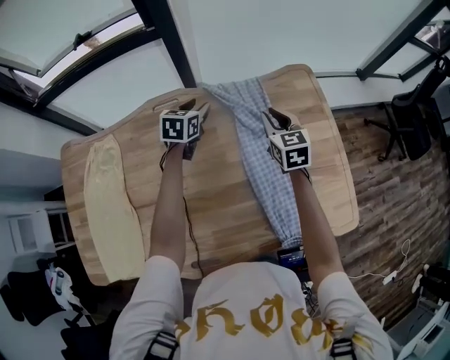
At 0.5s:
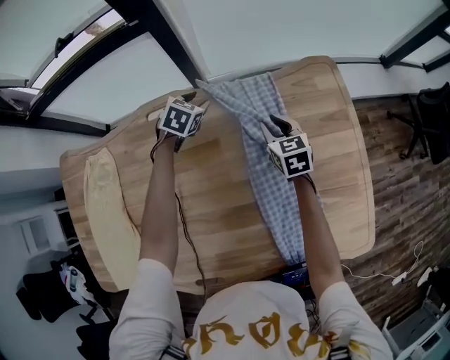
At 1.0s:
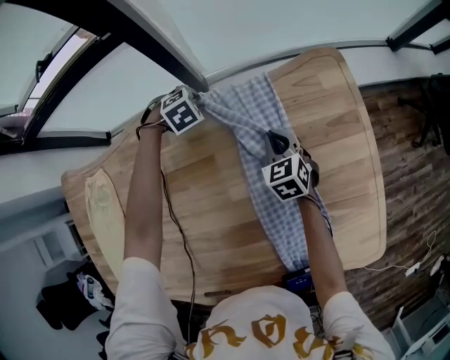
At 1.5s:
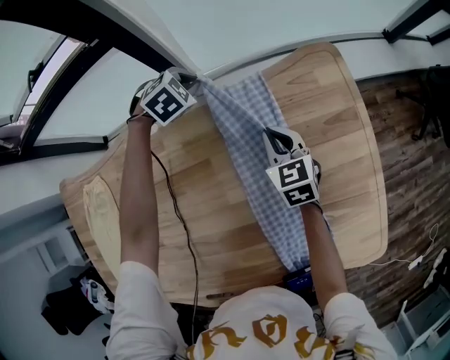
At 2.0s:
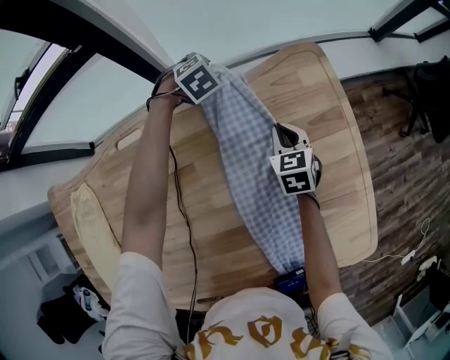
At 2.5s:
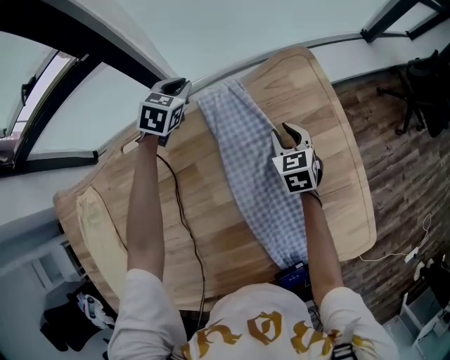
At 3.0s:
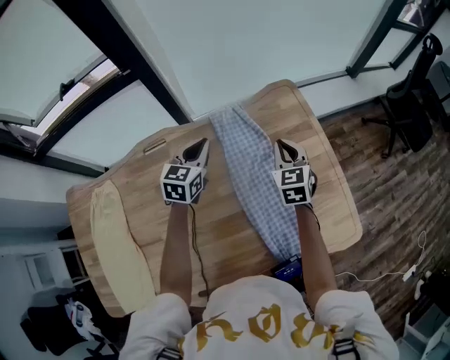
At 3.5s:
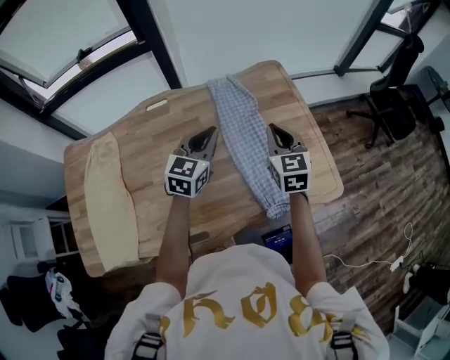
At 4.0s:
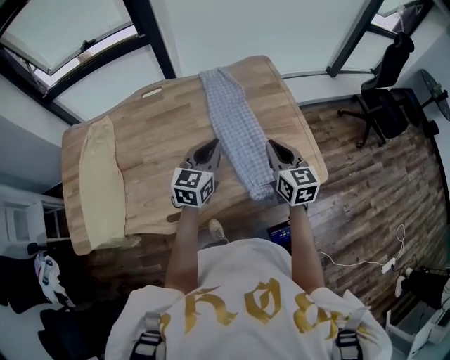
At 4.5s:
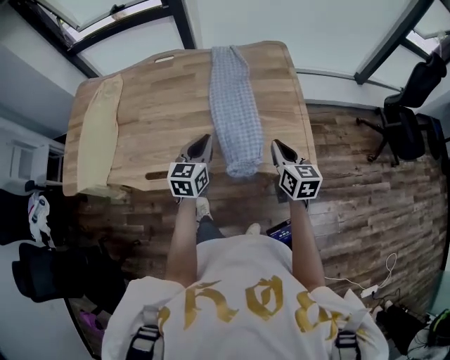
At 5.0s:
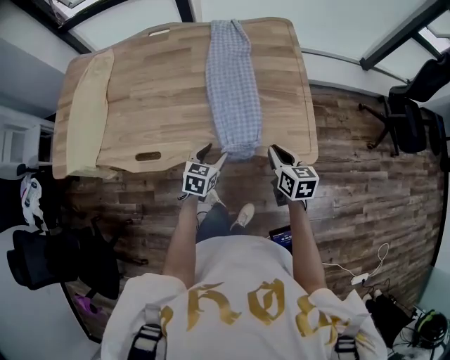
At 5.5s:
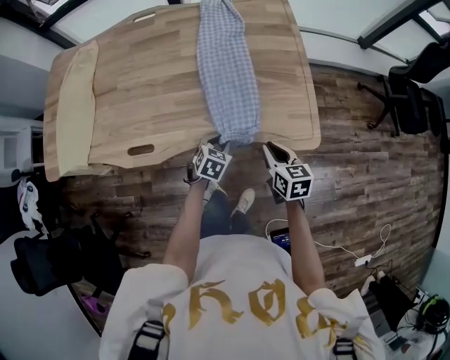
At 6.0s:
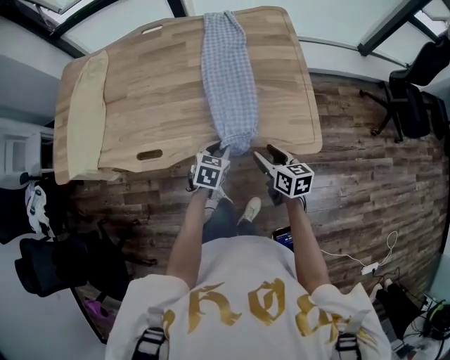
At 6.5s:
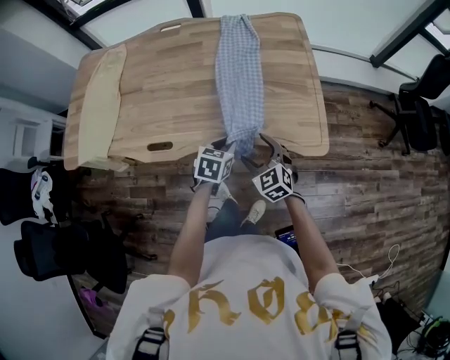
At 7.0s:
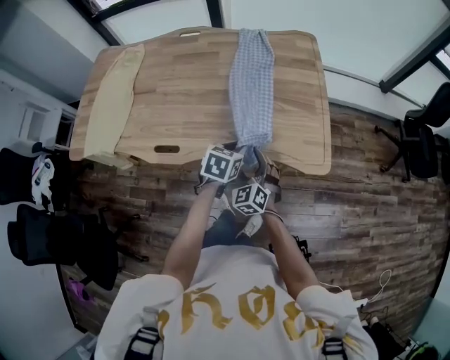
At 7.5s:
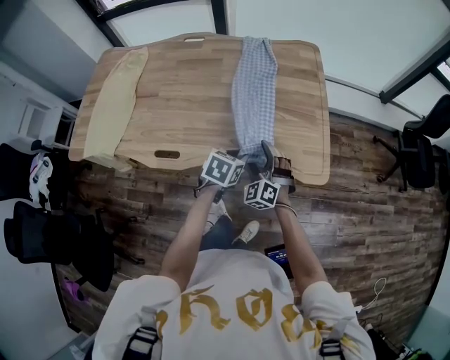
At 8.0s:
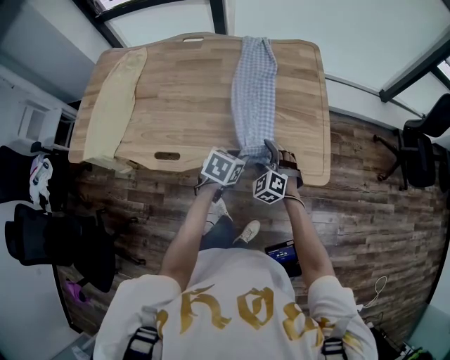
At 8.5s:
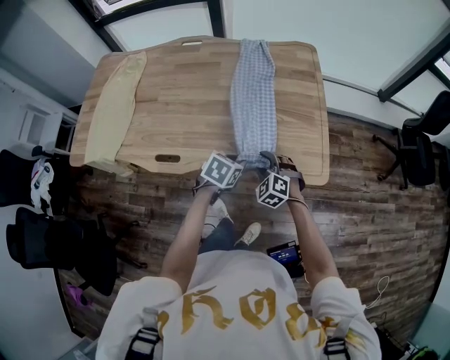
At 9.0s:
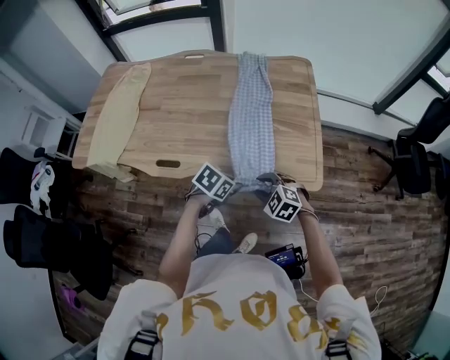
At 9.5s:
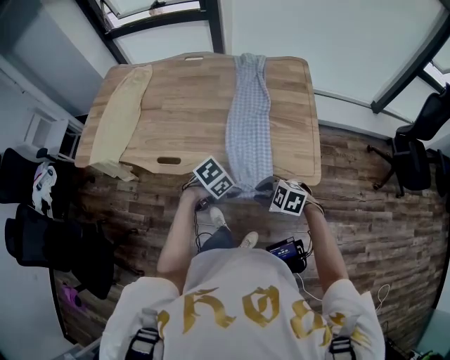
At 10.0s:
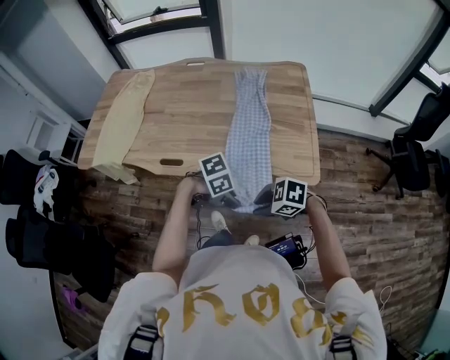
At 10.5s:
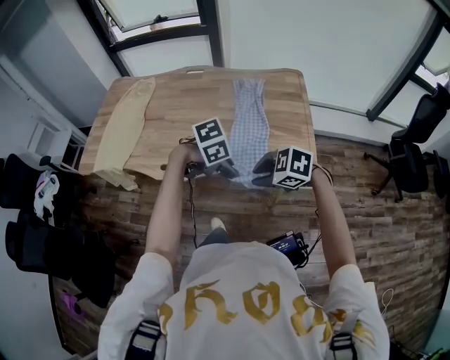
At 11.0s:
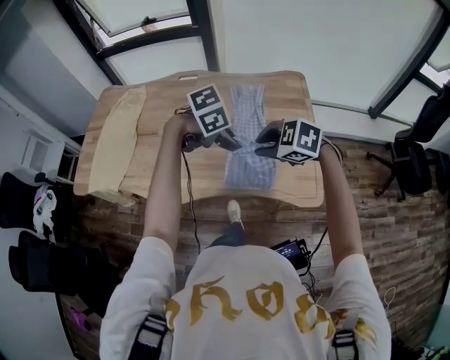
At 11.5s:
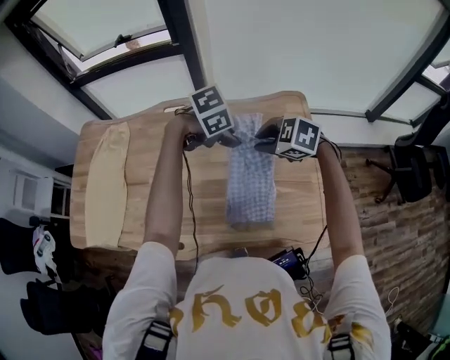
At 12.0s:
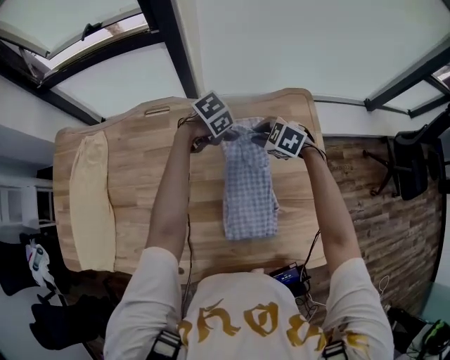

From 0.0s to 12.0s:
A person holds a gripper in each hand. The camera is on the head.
From 0.0s to 2.0s: The left gripper moves up and down over about 20 cm, changing direction 2 times, twists approximately 50 degrees clockwise, seen from behind, and closes, then reopens. The right gripper moves up and down over approximately 20 cm, changing direction 2 times.
From 2.0s to 4.0s: The pair of grippers is taken backward, about 50 cm. Both grippers move upward, some 25 cm. The left gripper tips its fingers upward by approximately 50 degrees, and closes its fingers. The right gripper swivels some 30 degrees.
From 4.0s to 6.0s: The right gripper moves downward and backward, about 25 cm, changes its angle by some 30 degrees, and opens, while the left gripper shifts some 30 cm downward, backward and to the right, tips its fingers downward by roughly 30 degrees, and opens, then closes once more.
From 6.0s to 8.0s: The left gripper shifts roughly 5 cm upward. The right gripper goes approximately 10 cm to the left and forward, rolls counterclockwise, seen from behind, by approximately 80 degrees, and opens up.
From 8.0s to 10.0s: The left gripper shifts by roughly 20 cm, and turns by some 50 degrees. Meanwhile the right gripper ends up roughly 25 cm from where it was, changes its angle by some 70 degrees, and closes up.
From 10.0s to 12.0s: The two grippers travel together, about 70 cm. The right gripper turns by some 30 degrees.

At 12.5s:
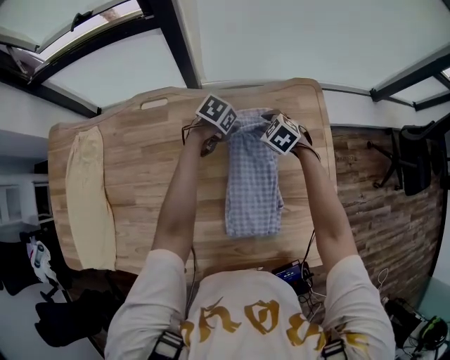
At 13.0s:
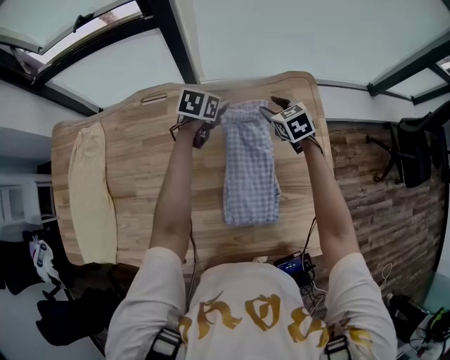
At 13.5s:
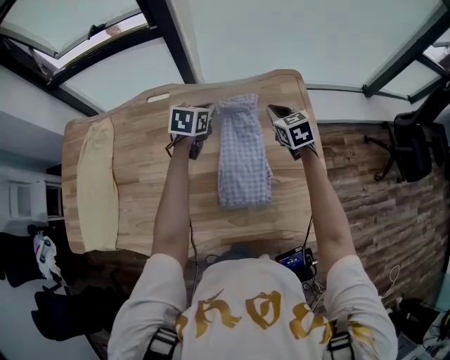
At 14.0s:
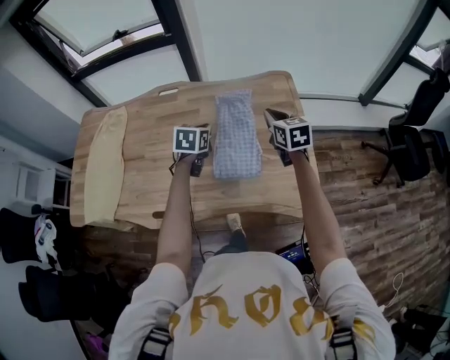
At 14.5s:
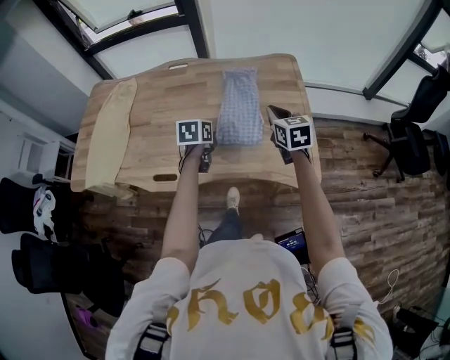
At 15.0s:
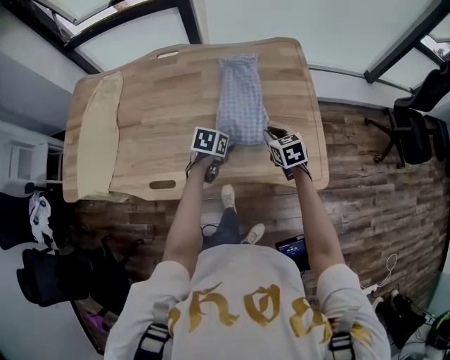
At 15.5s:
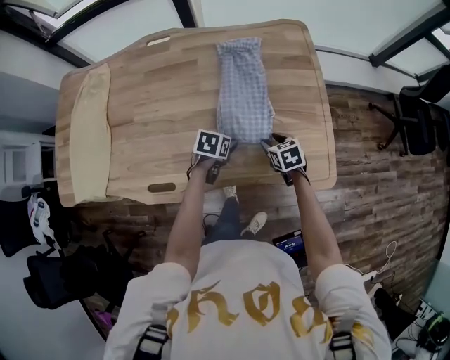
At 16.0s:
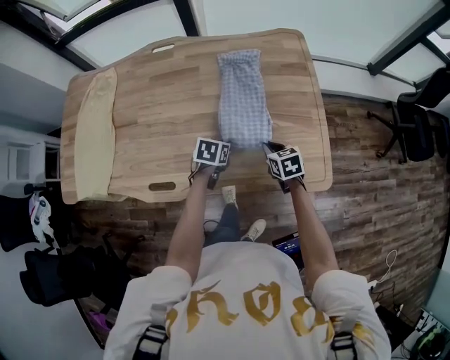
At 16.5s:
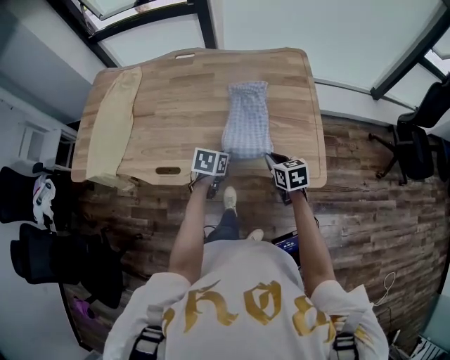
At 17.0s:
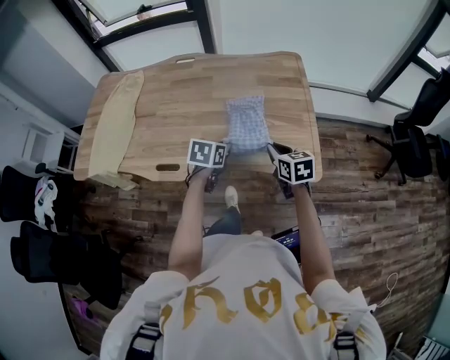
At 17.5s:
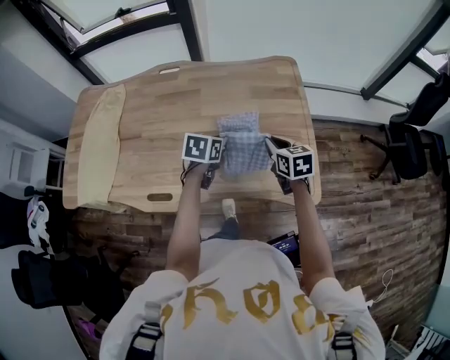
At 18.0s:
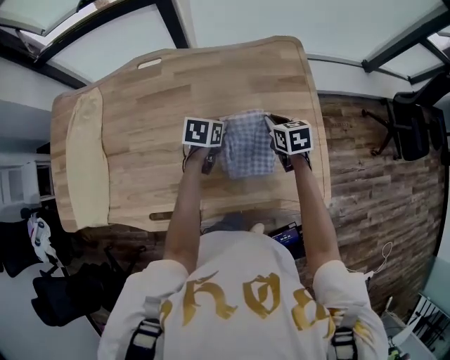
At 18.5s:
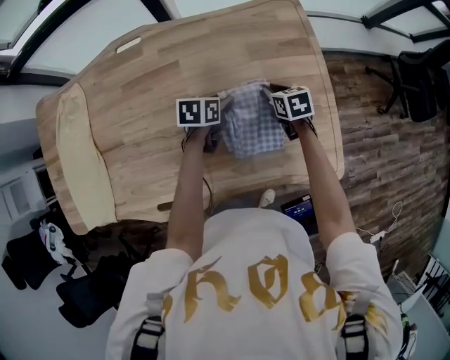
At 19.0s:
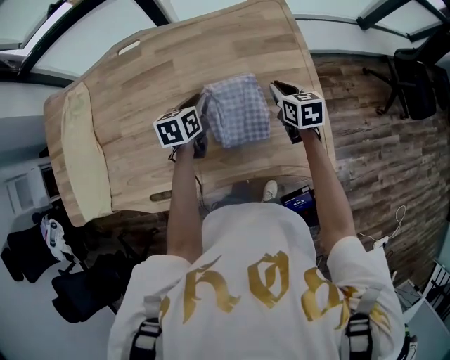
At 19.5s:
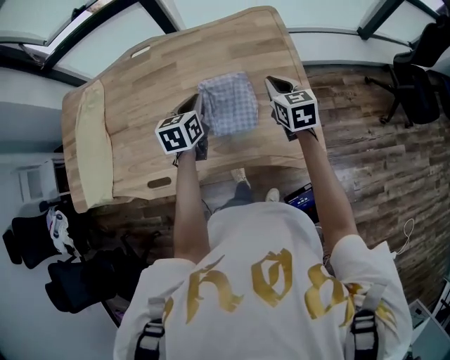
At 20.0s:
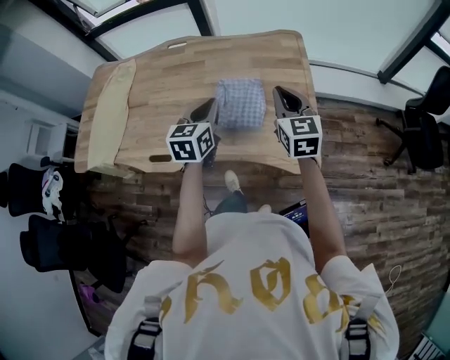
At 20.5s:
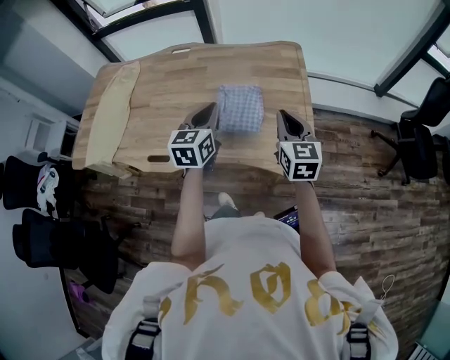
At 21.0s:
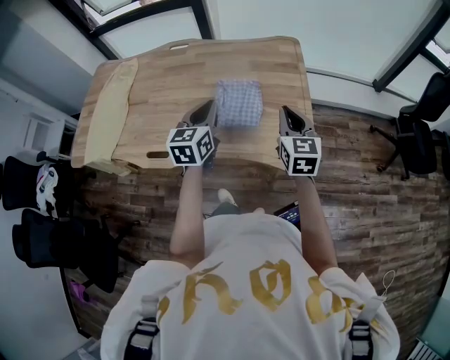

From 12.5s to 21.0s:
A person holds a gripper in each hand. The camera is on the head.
From 12.5s to 14.5s: The left gripper shifts roughly 40 cm backward, and changes its angle by about 40 degrees. The right gripper shifts roughly 40 cm backward and upward, tilts its fingers roughly 30 degrees upward, and closes up.
From 14.5s to 16.5s: The right gripper is displaced downward and backward by some 20 cm, and opens, then closes again. Meanwhile the left gripper travels backward and downward by roughly 15 cm, and opens, then closes again.
From 16.5s to 19.0s: Both grippers move forward, approximately 25 cm.
From 19.0s to 21.0s: Both grippers move backward and upward, roughly 30 cm. The right gripper turns by roughly 30 degrees. The left gripper turns by about 30 degrees.

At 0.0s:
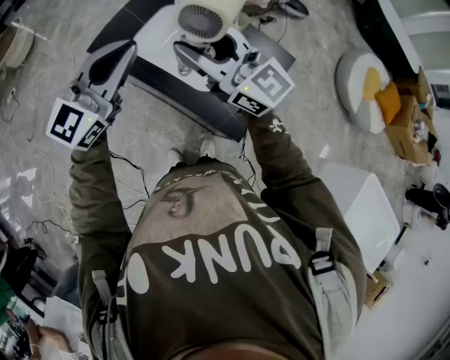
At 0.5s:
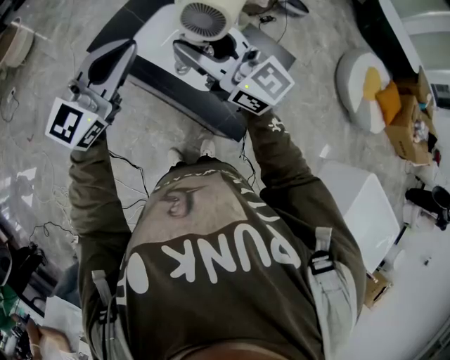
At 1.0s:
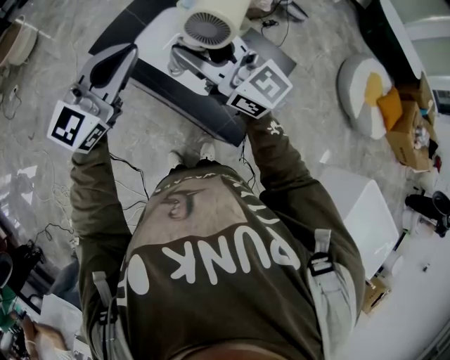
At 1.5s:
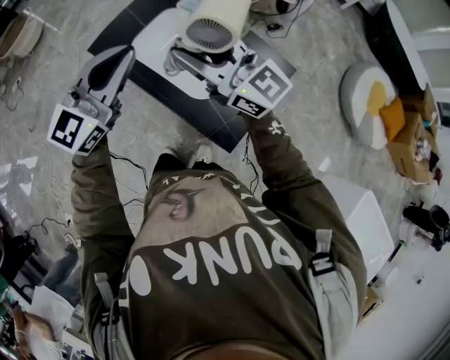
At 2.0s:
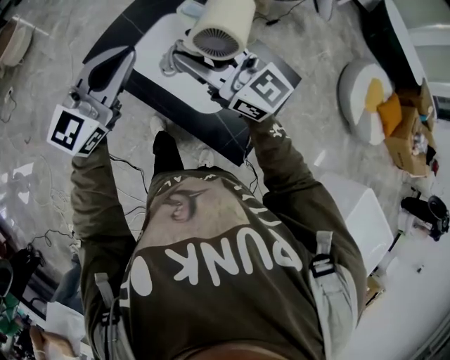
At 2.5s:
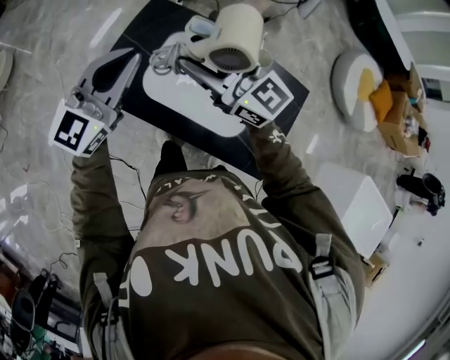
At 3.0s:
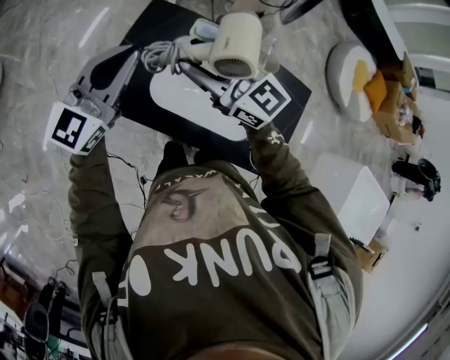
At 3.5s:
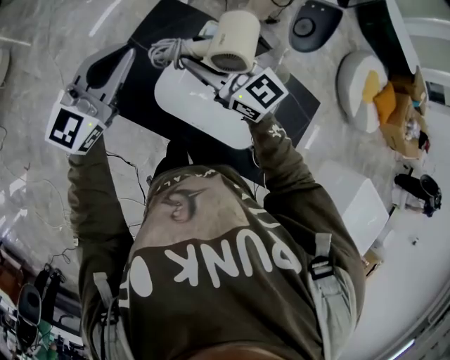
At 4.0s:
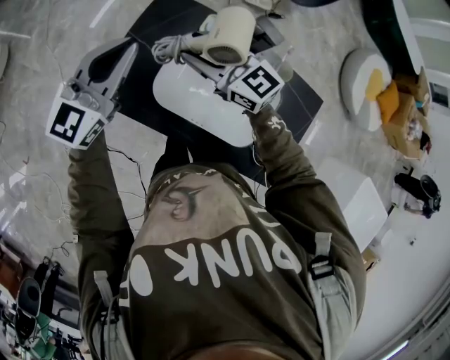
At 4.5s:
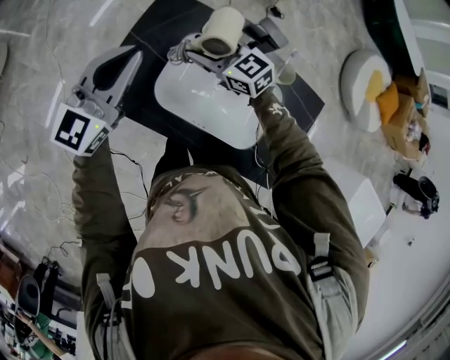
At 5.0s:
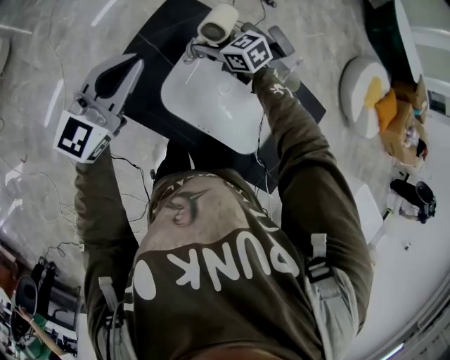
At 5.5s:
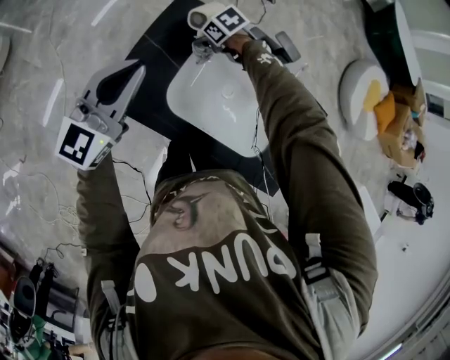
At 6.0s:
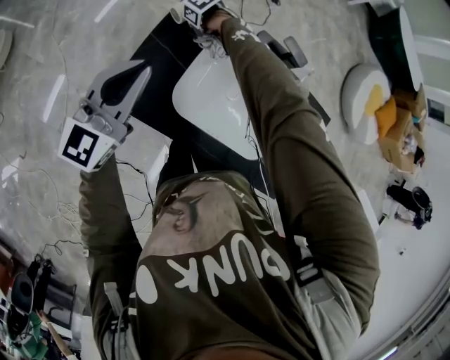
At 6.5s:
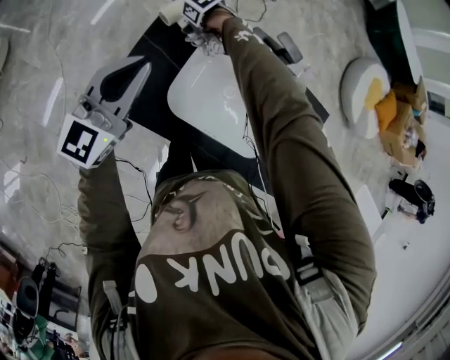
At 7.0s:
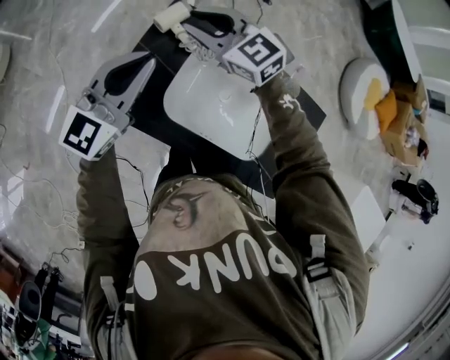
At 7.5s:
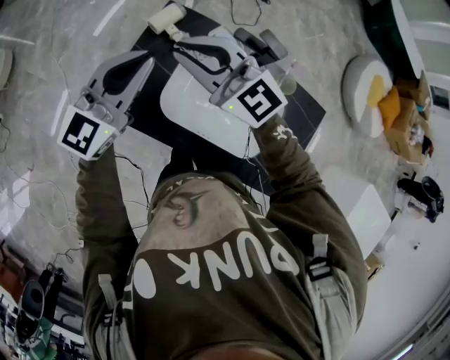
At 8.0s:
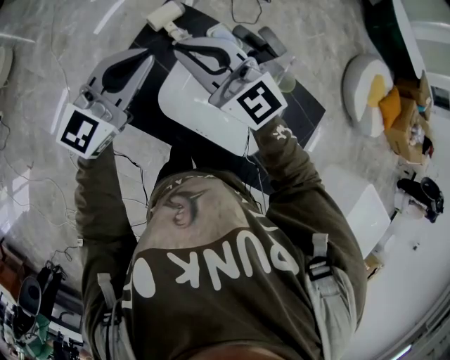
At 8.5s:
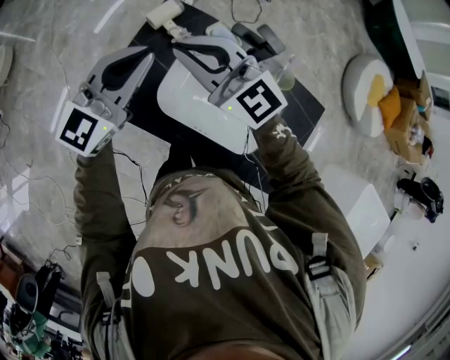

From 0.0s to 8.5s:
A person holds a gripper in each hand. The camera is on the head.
From 0.0s to 2.0s: Both grippers travel together forward, about 10 cm.
From 2.0s to 4.0s: The left gripper shifts some 25 cm forward and to the left, while the right gripper goes approximately 30 cm forward, downward and to the left.
From 4.0s to 6.5s: The right gripper shifts some 25 cm downward, and tilts its fingers roughly 70 degrees downward.
From 6.5s to 8.5s: The right gripper shifts some 35 cm upward, angles its fingers upward, by some 70 degrees, and closes its fingers. The left gripper moves roughly 5 cm.
